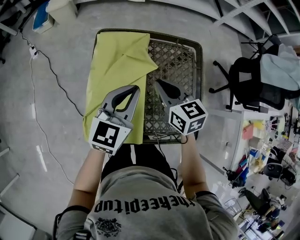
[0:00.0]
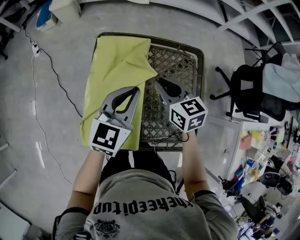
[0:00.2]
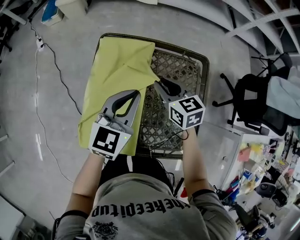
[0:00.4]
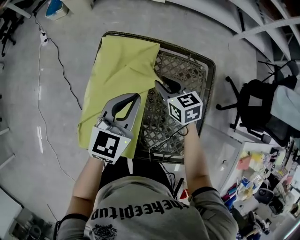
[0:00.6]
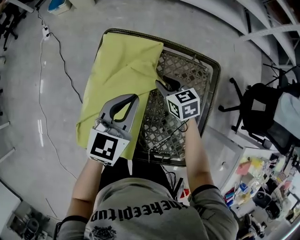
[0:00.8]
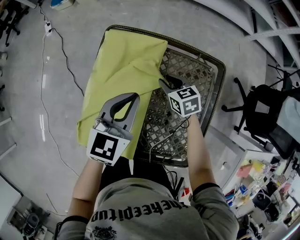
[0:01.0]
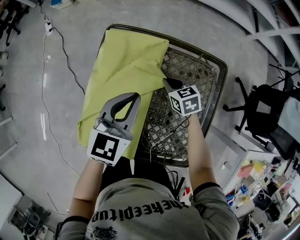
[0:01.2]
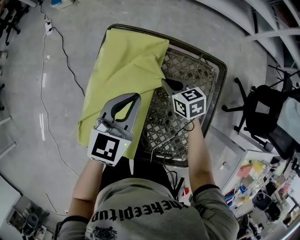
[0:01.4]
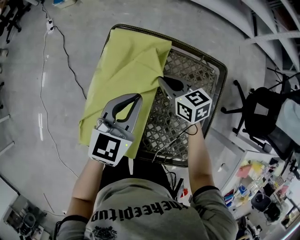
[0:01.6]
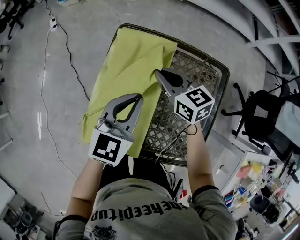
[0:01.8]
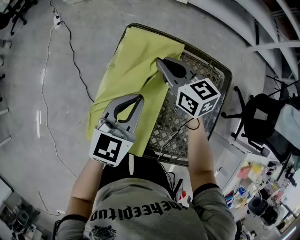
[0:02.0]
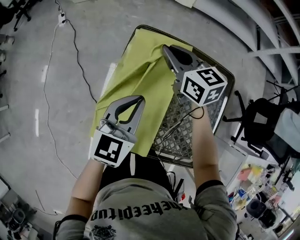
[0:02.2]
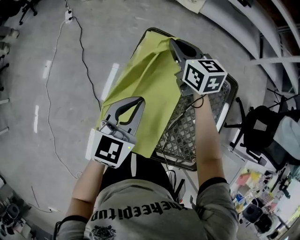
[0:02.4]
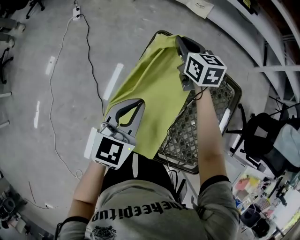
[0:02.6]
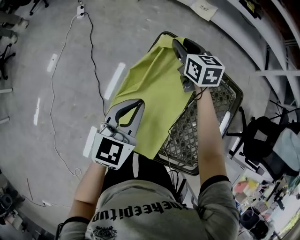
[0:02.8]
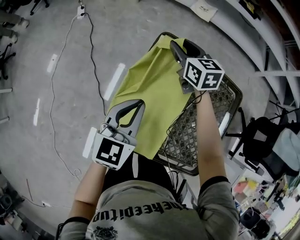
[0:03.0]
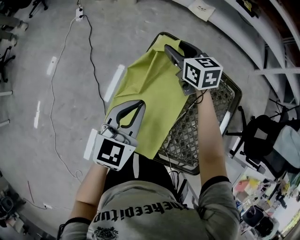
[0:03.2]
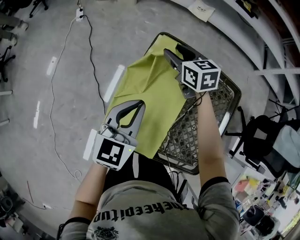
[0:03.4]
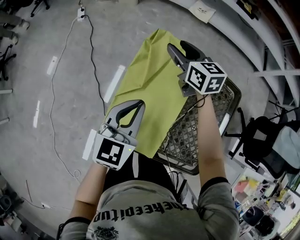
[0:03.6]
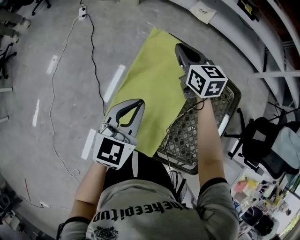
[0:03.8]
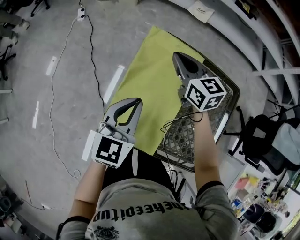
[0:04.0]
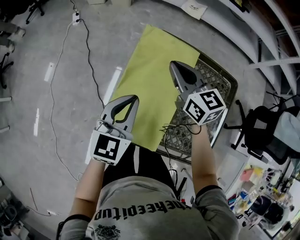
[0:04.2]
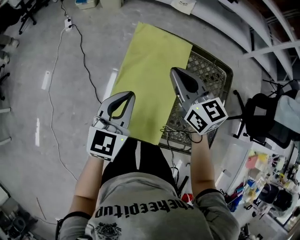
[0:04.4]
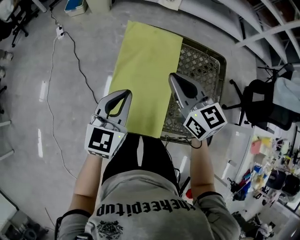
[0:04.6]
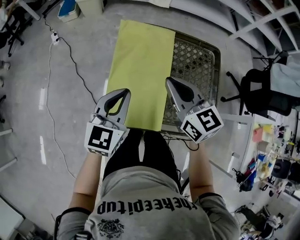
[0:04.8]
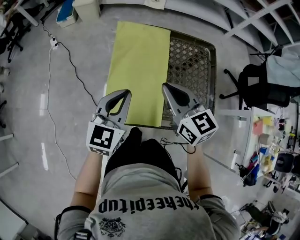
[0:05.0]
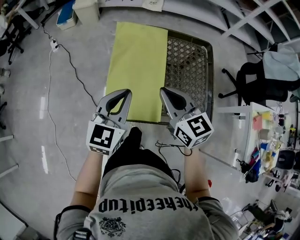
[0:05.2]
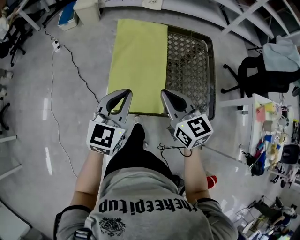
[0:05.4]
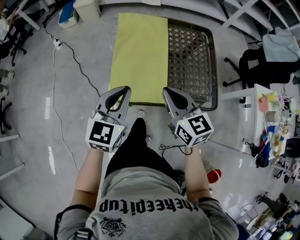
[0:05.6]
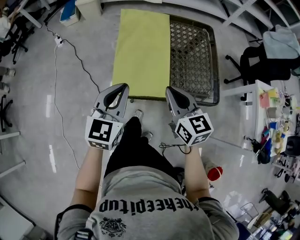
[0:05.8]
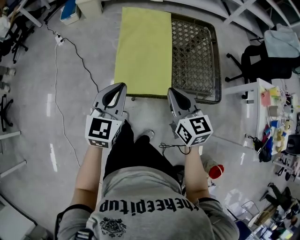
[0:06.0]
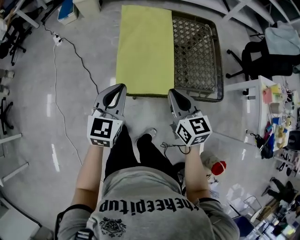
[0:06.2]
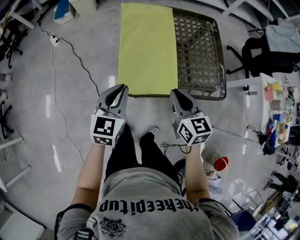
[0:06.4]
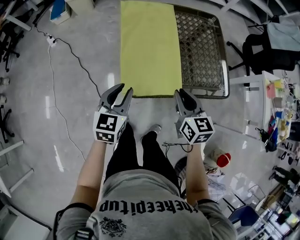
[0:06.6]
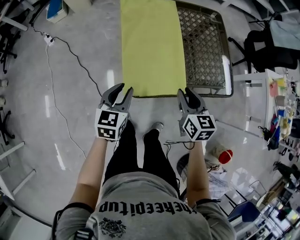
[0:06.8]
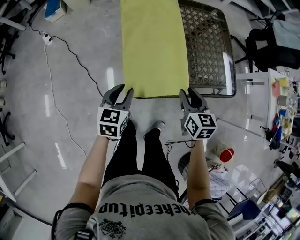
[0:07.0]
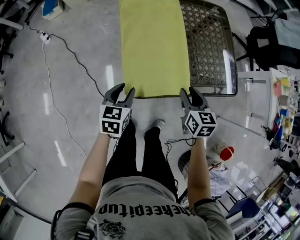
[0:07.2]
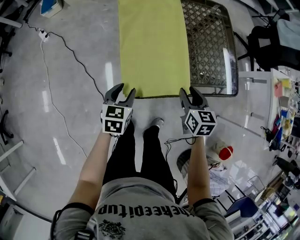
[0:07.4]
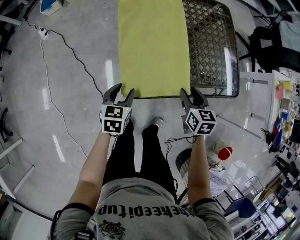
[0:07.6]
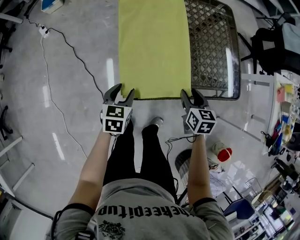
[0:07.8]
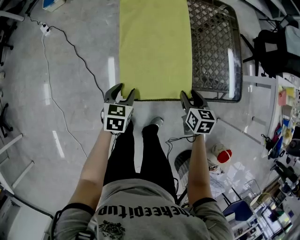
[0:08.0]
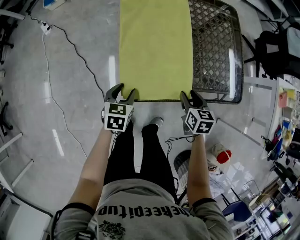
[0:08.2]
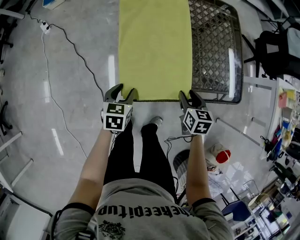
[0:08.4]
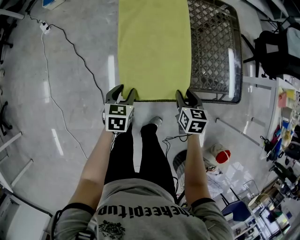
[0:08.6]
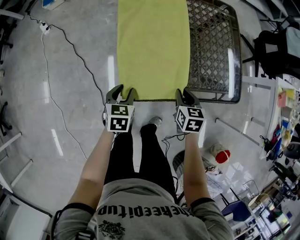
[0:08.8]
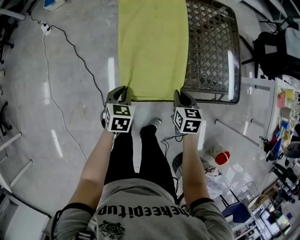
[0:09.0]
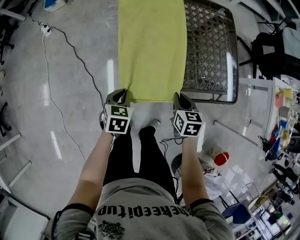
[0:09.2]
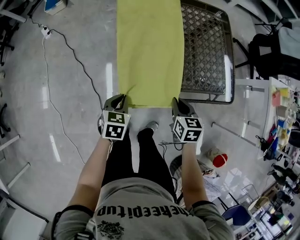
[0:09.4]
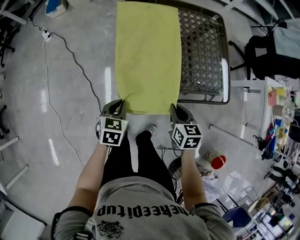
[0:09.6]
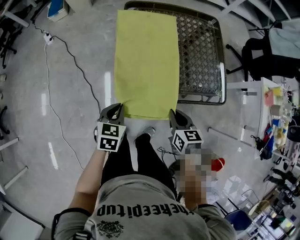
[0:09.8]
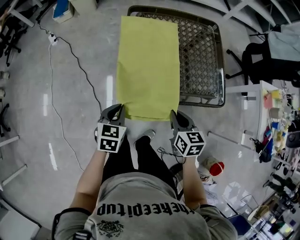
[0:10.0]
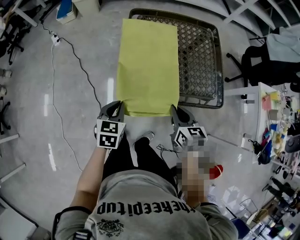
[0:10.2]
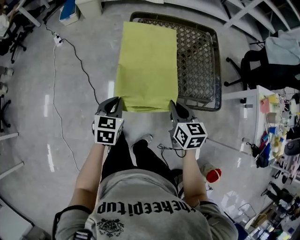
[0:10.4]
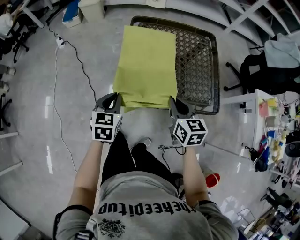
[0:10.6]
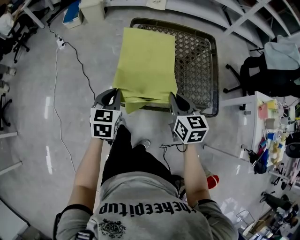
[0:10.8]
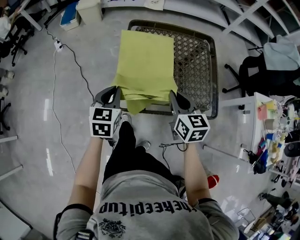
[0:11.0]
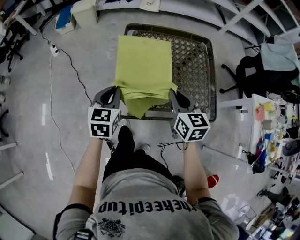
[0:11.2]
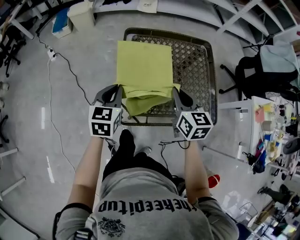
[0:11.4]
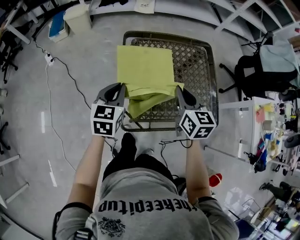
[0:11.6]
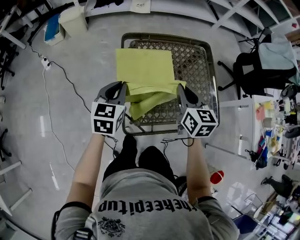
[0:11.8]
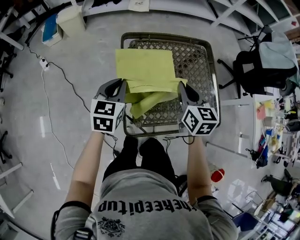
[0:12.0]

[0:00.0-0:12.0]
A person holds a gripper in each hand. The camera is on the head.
0:00.0 to 0:01.6: The left gripper heads forward, covering some 5 cm; the right gripper moves forward and downward, roughly 15 cm, swivels about 20 degrees, and opens, then closes again.
0:01.6 to 0:03.0: The right gripper goes some 20 cm forward, to the left and upward, and opens, while the left gripper is displaced to the left by some 15 cm.
0:03.0 to 0:04.4: The left gripper changes place by some 5 cm. The right gripper goes roughly 20 cm backward and upward, and closes up.
0:04.4 to 0:06.0: The left gripper goes approximately 20 cm backward; the right gripper moves backward, roughly 30 cm, and rotates roughly 20 degrees.
0:06.0 to 0:07.6: The grippers both shift downward by some 20 cm. The left gripper rotates some 30 degrees, and opens; the right gripper turns by about 30 degrees, and opens its fingers.
0:07.6 to 0:09.0: The right gripper closes; the left gripper closes up.
0:09.0 to 0:10.4: The right gripper travels upward by approximately 15 cm, and swivels approximately 20 degrees; the left gripper travels upward and backward by some 15 cm.
0:10.4 to 0:12.0: Both grippers travel together forward, about 20 cm.

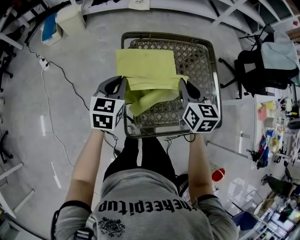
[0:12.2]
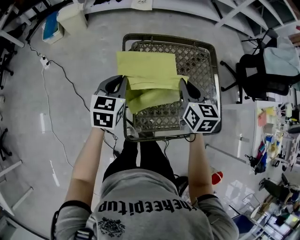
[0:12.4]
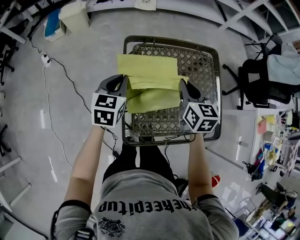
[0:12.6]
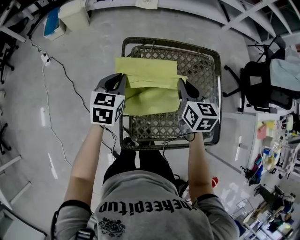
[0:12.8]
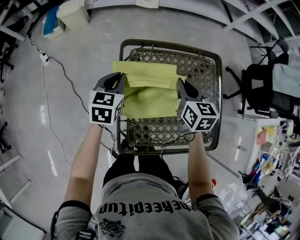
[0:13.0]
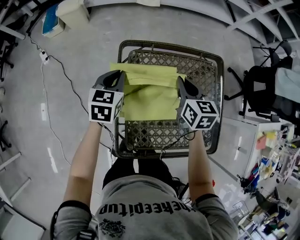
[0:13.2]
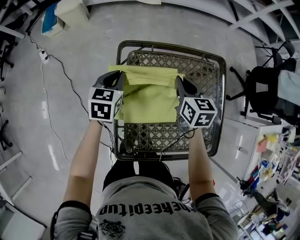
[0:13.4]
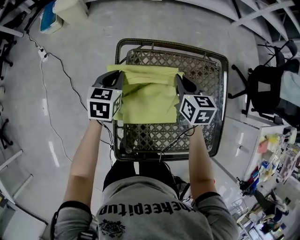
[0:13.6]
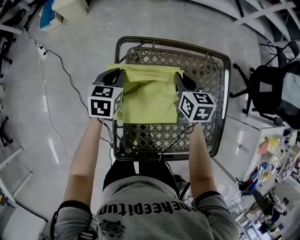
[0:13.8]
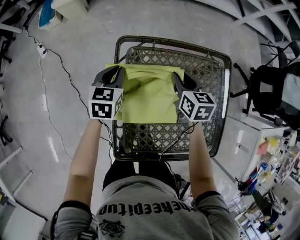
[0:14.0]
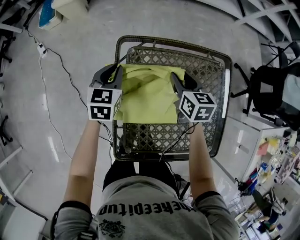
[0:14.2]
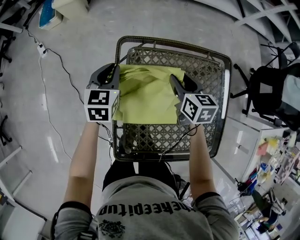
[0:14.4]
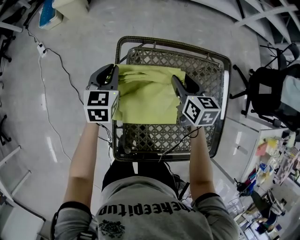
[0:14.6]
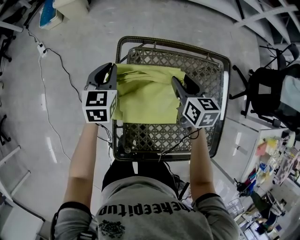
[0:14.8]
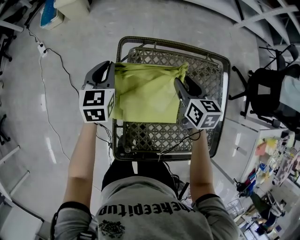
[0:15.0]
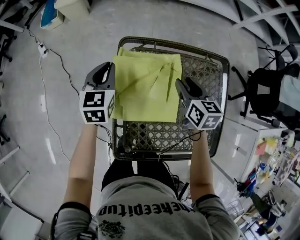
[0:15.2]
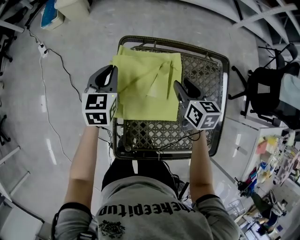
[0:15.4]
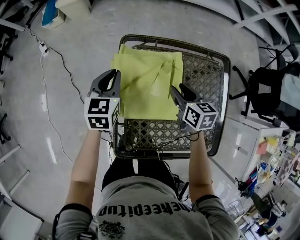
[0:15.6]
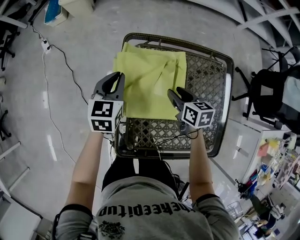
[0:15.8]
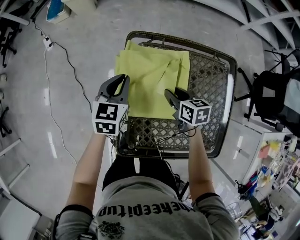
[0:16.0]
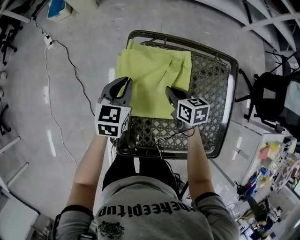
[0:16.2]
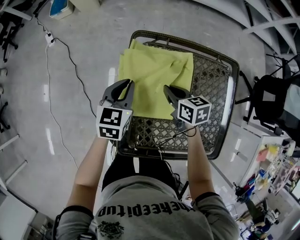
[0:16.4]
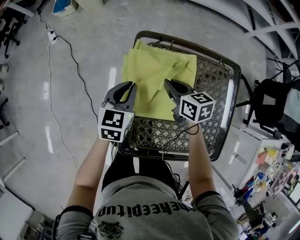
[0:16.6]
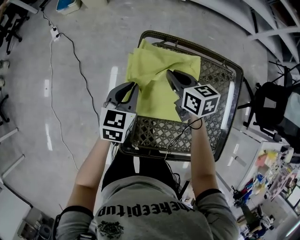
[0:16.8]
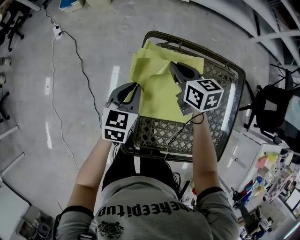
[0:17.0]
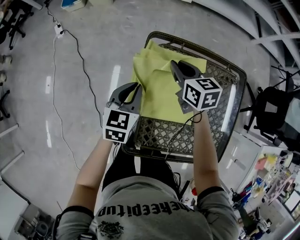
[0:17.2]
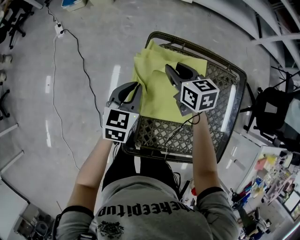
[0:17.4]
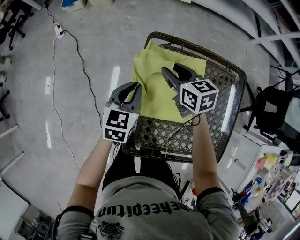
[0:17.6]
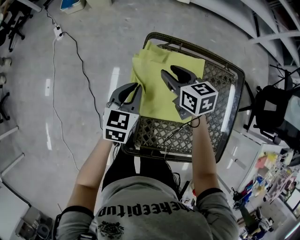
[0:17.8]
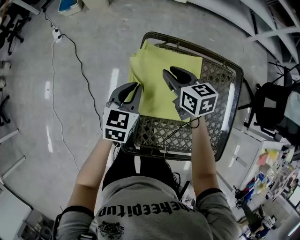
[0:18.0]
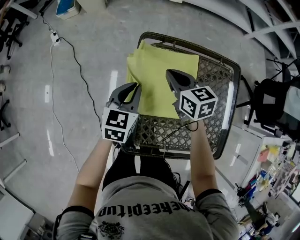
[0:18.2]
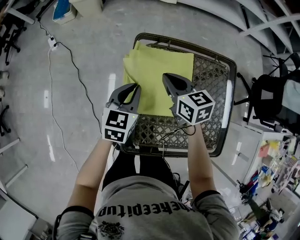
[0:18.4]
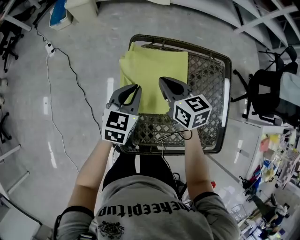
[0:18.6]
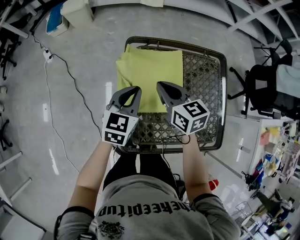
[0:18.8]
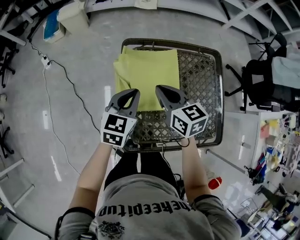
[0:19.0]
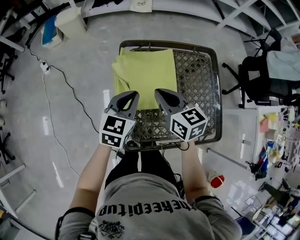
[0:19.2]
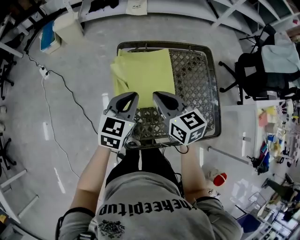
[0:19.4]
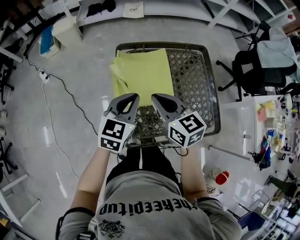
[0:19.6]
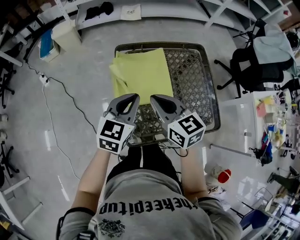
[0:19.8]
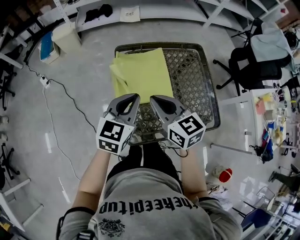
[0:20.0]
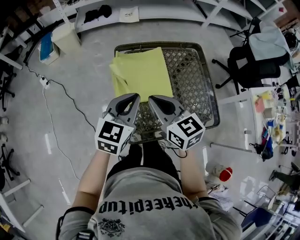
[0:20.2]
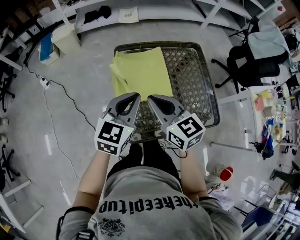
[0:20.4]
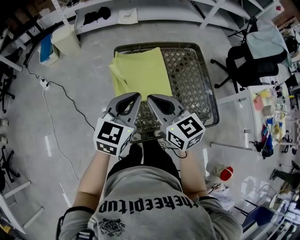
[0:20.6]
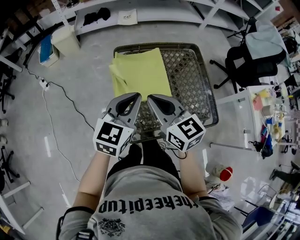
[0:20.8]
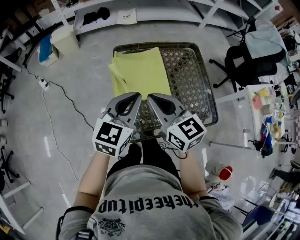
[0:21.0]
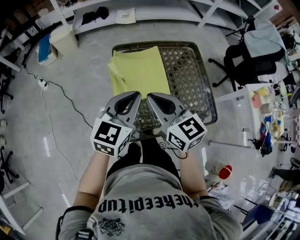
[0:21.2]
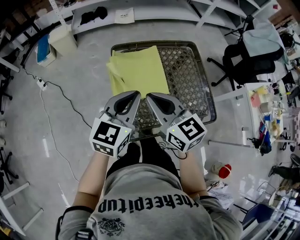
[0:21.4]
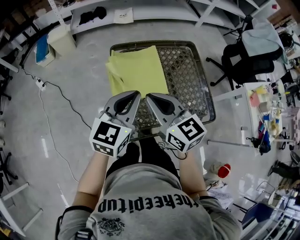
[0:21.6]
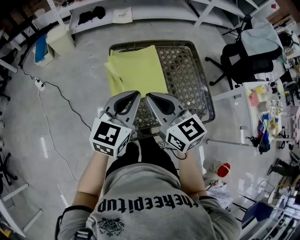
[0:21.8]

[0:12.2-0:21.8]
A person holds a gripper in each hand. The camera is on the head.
0:12.2 to 0:13.8: The two grippers go about 20 cm forward and downward.
0:13.8 to 0:15.4: The left gripper moves approximately 5 cm. The right gripper opens.
0:15.4 to 0:17.0: The left gripper goes about 10 cm backward. Meanwhile the right gripper shifts some 15 cm to the left and forward, and closes its fingers.
0:17.0 to 0:18.6: The left gripper changes place by approximately 5 cm. The right gripper moves backward, roughly 10 cm, and opens, then closes once more.
0:18.6 to 0:20.2: The grippers both shift backward and upward by some 20 cm.
0:20.2 to 0:21.8: There are only small adjustments of the grippers.

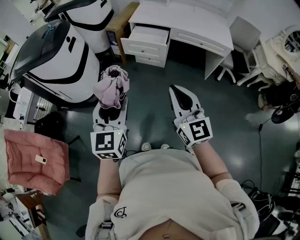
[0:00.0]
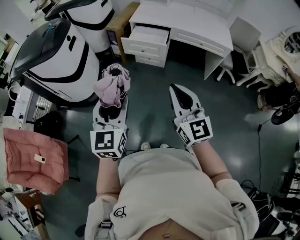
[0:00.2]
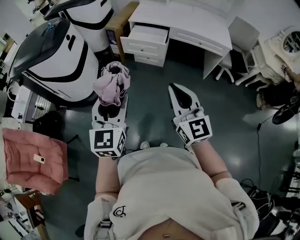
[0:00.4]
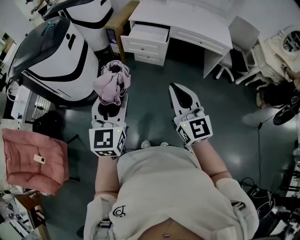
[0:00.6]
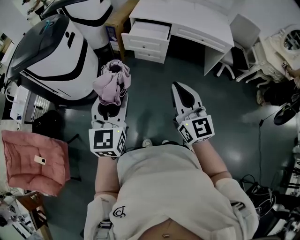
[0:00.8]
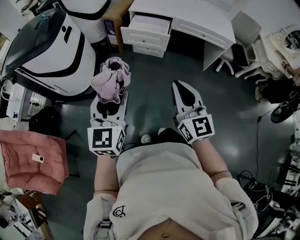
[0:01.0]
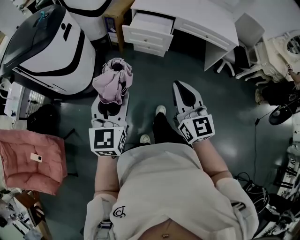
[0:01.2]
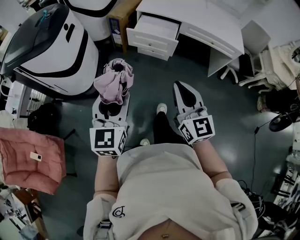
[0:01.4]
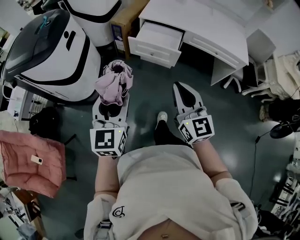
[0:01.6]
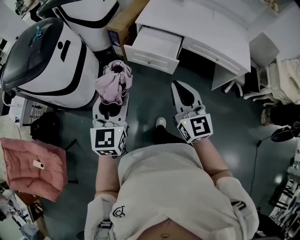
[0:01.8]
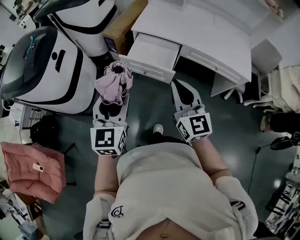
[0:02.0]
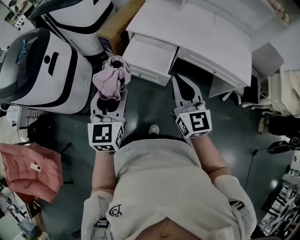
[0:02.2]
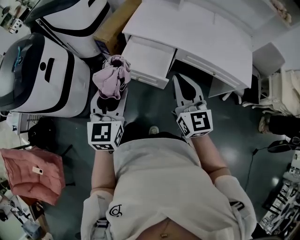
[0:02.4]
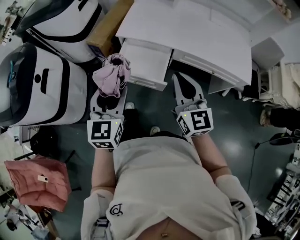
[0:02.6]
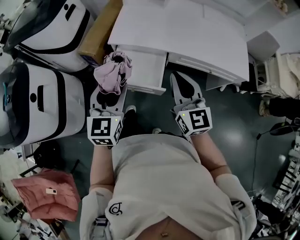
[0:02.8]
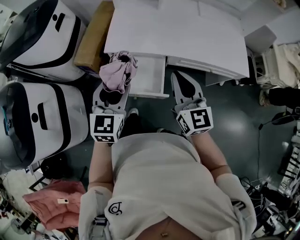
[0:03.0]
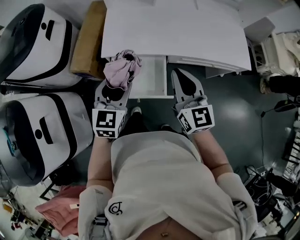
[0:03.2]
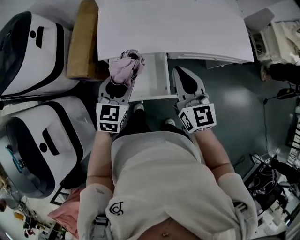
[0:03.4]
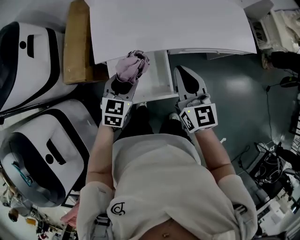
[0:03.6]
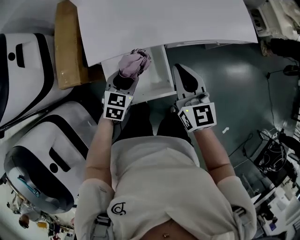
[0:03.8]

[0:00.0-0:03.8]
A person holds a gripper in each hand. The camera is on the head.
0:00.0 to 0:01.2: The right gripper ends up approximately 5 cm from where it was. The left gripper shifts by approximately 5 cm.
0:01.2 to 0:02.6: Both grippers are carried forward, some 40 cm.
0:02.6 to 0:03.8: The right gripper ends up approximately 20 cm from where it was, and swivels approximately 30 degrees; the left gripper shifts by about 35 cm, and turns by roughly 50 degrees.
